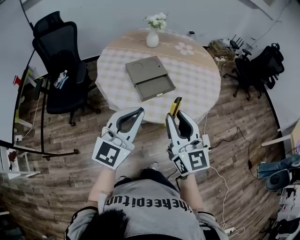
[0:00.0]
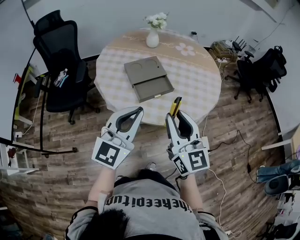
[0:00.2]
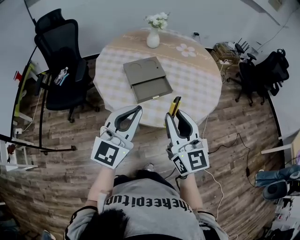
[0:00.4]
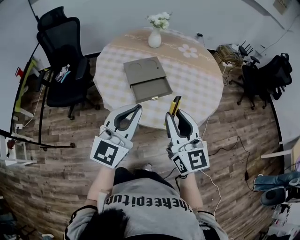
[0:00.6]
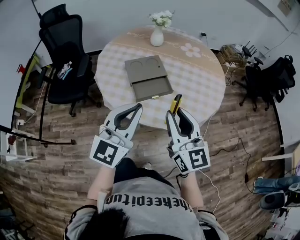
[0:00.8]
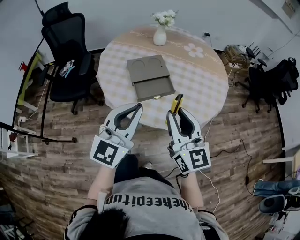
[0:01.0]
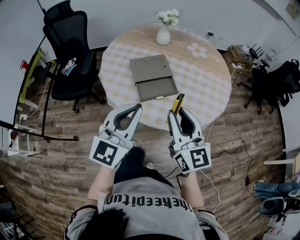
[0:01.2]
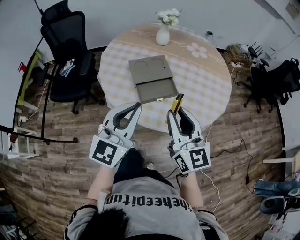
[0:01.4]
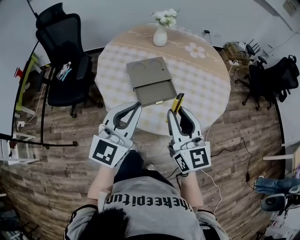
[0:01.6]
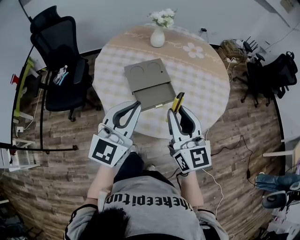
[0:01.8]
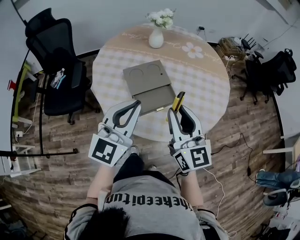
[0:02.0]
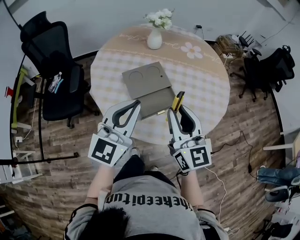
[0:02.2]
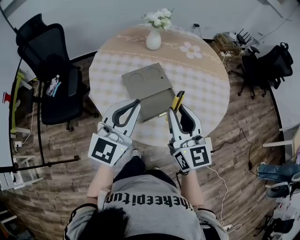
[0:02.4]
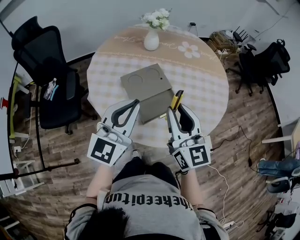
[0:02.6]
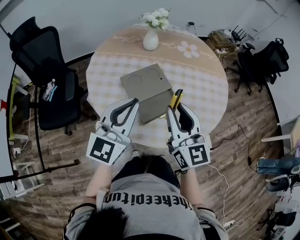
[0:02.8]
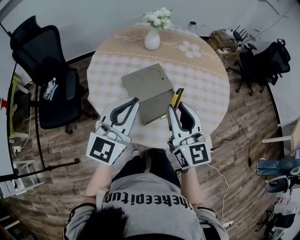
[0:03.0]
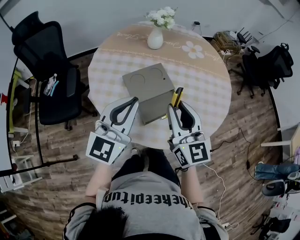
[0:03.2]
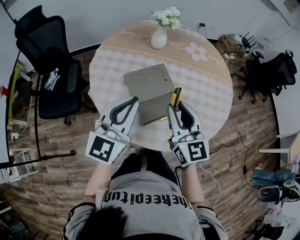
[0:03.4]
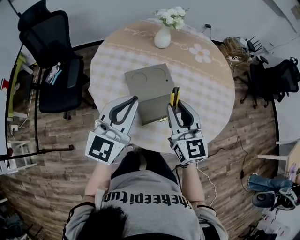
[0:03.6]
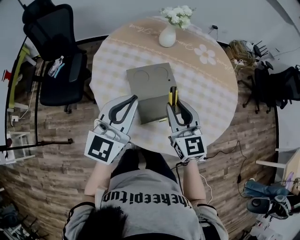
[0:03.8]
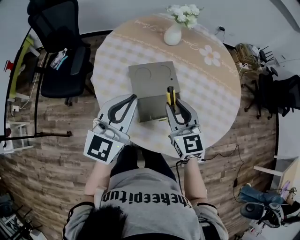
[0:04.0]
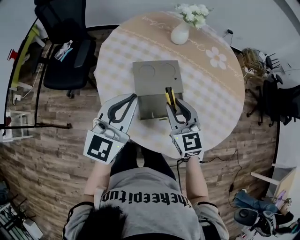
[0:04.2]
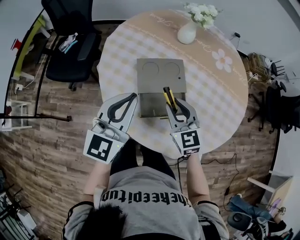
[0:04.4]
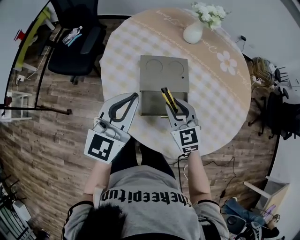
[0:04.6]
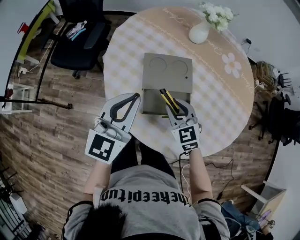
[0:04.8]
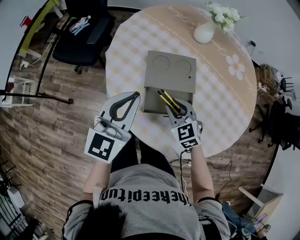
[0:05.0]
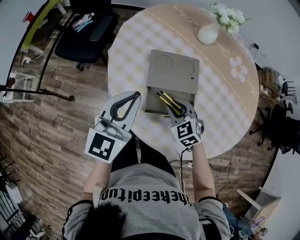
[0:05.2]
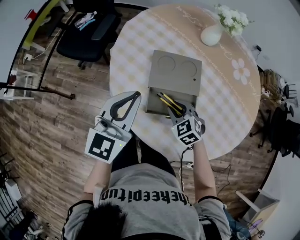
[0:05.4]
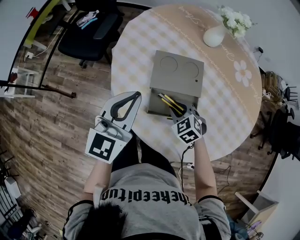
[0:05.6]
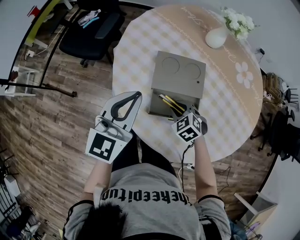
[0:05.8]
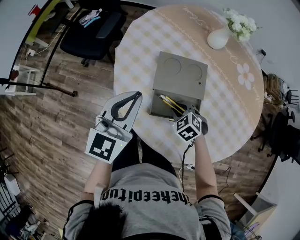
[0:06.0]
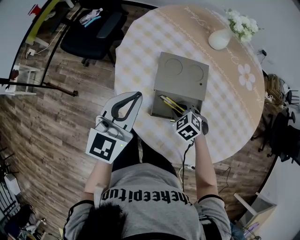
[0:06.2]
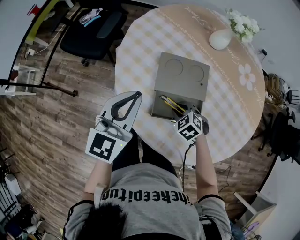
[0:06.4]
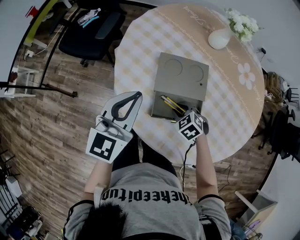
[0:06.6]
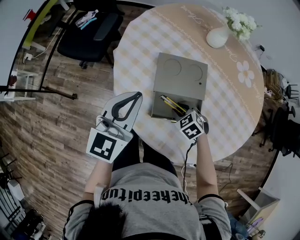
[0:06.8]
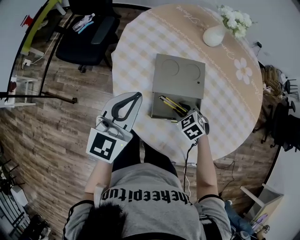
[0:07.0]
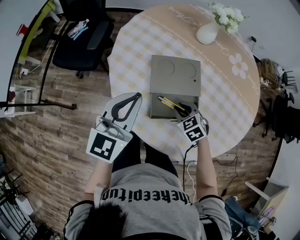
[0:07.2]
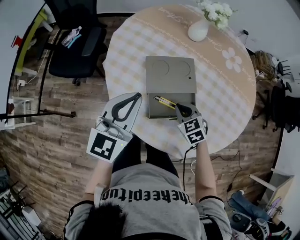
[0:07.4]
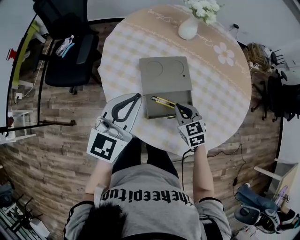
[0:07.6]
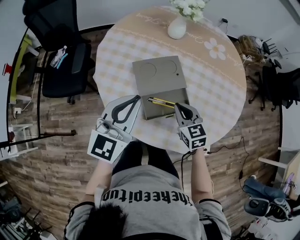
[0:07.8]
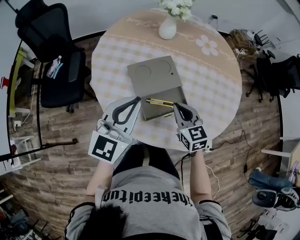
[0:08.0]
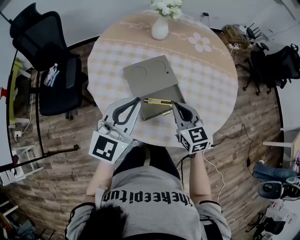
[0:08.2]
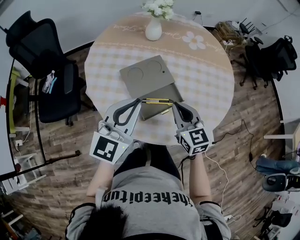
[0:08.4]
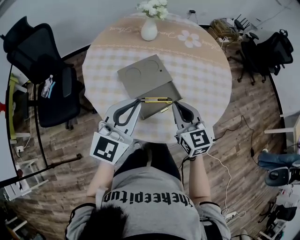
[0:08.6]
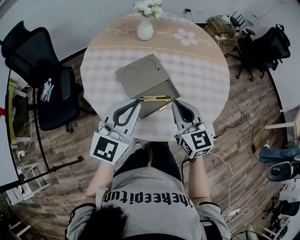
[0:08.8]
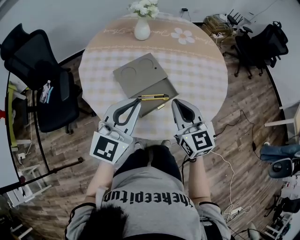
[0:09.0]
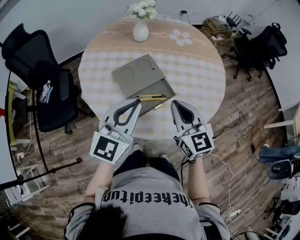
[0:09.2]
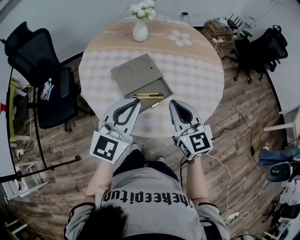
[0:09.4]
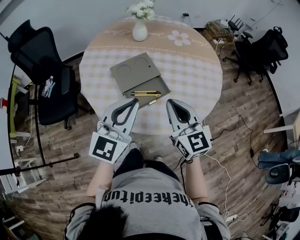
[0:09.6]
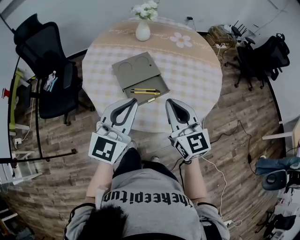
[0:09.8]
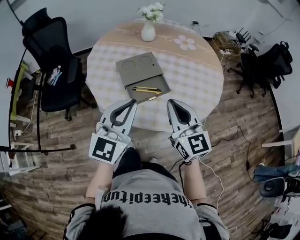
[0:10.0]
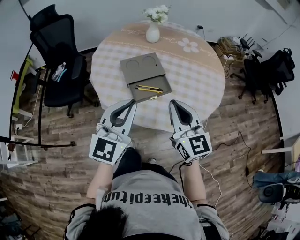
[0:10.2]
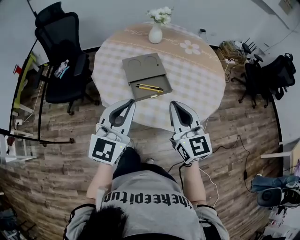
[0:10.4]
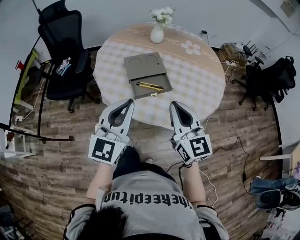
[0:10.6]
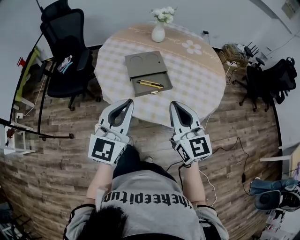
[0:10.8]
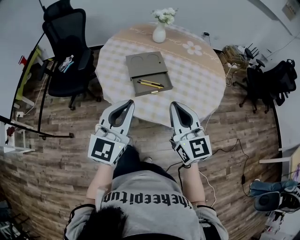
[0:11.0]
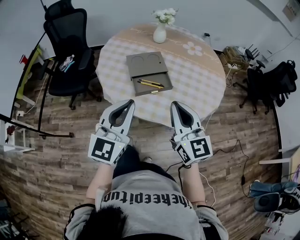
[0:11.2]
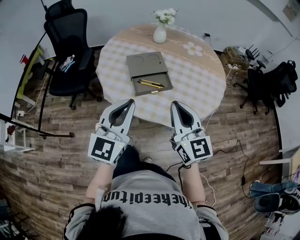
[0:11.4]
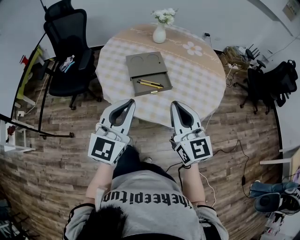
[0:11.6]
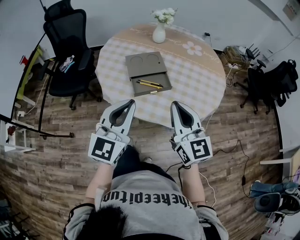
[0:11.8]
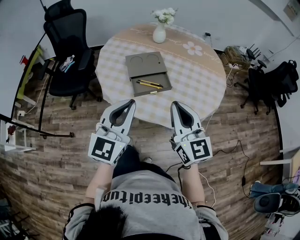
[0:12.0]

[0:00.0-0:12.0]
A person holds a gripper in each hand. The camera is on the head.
0:00.0 to 0:01.6: Both grippers move forward, about 10 cm.
0:01.6 to 0:03.0: The grippers both shift forward and to the left by roughly 15 cm.
0:03.0 to 0:04.4: The right gripper heads downward and forward, covering some 15 cm, and swivels roughly 40 degrees; the left gripper ends up approximately 5 cm from where it was, and rotates about 20 degrees.
0:04.4 to 0:06.0: The right gripper goes about 15 cm downward, and tips its fingers downward by some 40 degrees. The left gripper changes place by roughly 5 cm.
0:06.0 to 0:07.6: The right gripper is displaced upward by some 5 cm, changes its angle by about 40 degrees, and closes up.
0:07.6 to 0:09.0: The left gripper shifts roughly 5 cm to the right, and rotates some 20 degrees; the right gripper heads upward and backward, covering roughly 20 cm, and points its fingers some 30 degrees further upward.
0:09.0 to 0:10.4: The right gripper is displaced backward and upward by some 15 cm, while the left gripper travels backward by roughly 15 cm, and swivels about 20 degrees.
0:10.4 to 0:12.0: The grippers stay close to where they were, moving slightly.

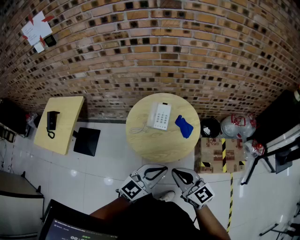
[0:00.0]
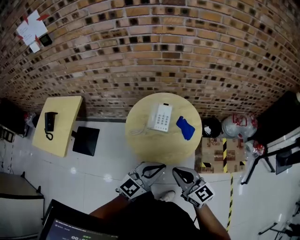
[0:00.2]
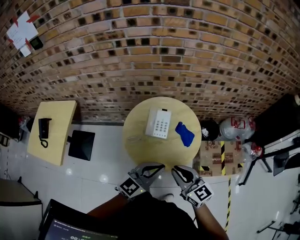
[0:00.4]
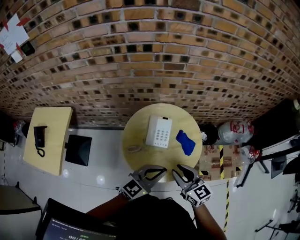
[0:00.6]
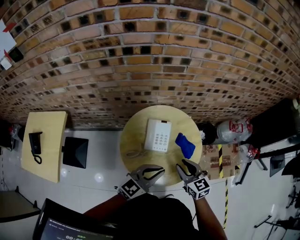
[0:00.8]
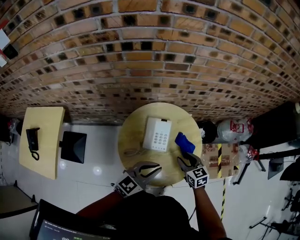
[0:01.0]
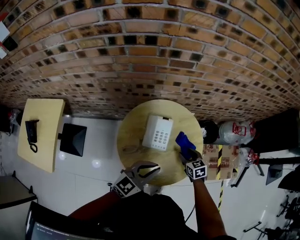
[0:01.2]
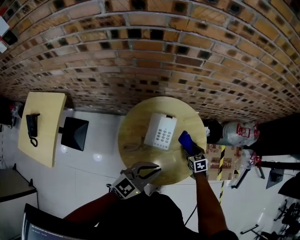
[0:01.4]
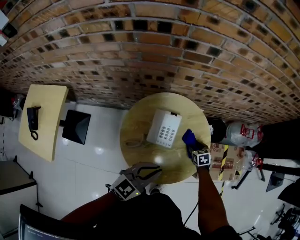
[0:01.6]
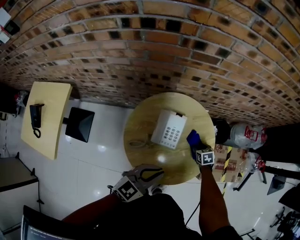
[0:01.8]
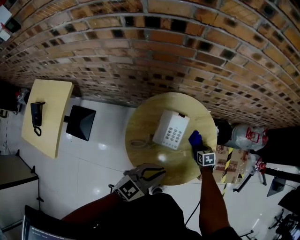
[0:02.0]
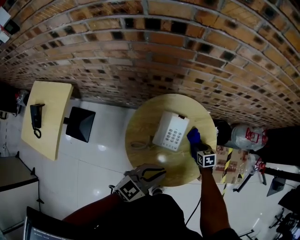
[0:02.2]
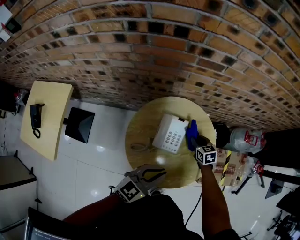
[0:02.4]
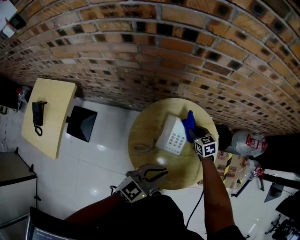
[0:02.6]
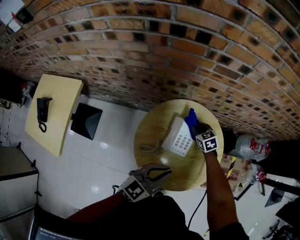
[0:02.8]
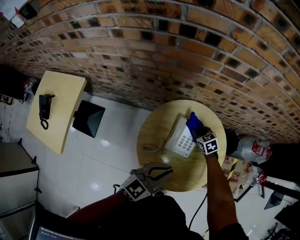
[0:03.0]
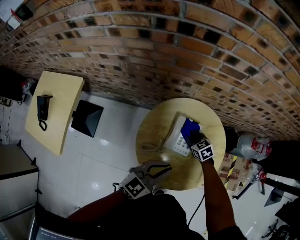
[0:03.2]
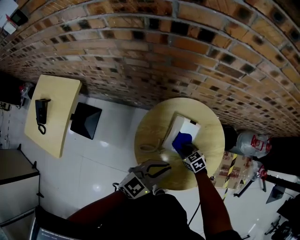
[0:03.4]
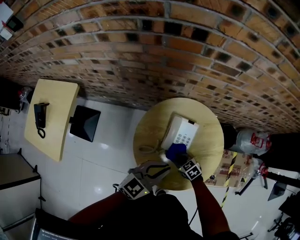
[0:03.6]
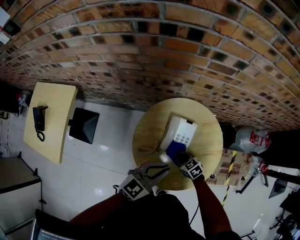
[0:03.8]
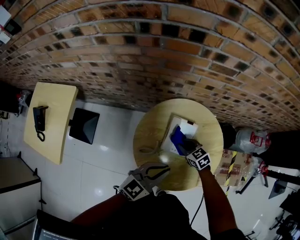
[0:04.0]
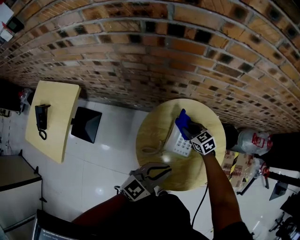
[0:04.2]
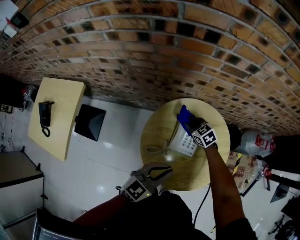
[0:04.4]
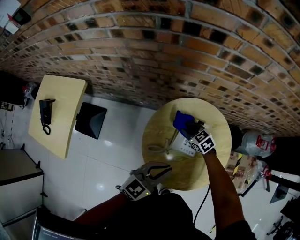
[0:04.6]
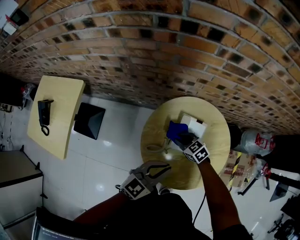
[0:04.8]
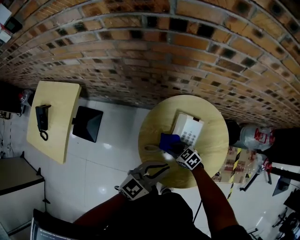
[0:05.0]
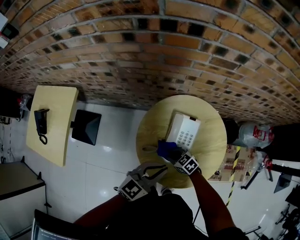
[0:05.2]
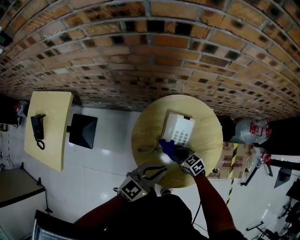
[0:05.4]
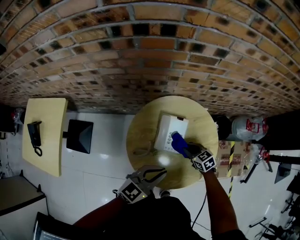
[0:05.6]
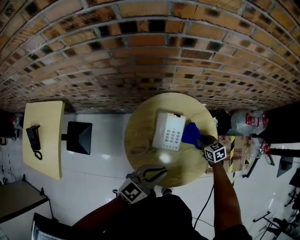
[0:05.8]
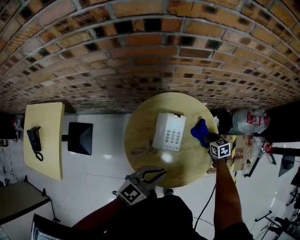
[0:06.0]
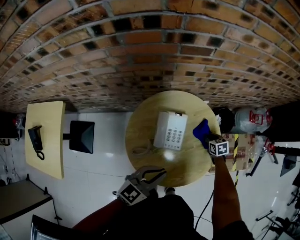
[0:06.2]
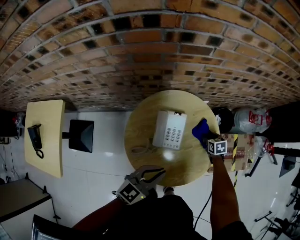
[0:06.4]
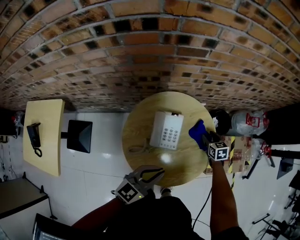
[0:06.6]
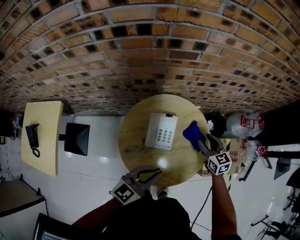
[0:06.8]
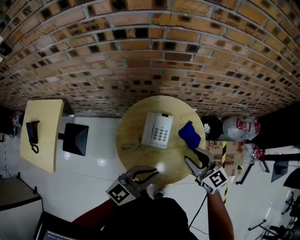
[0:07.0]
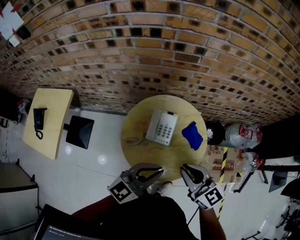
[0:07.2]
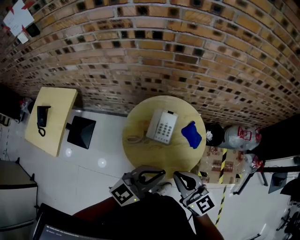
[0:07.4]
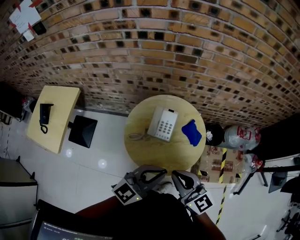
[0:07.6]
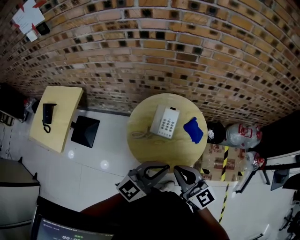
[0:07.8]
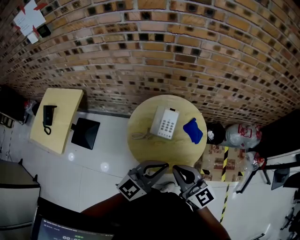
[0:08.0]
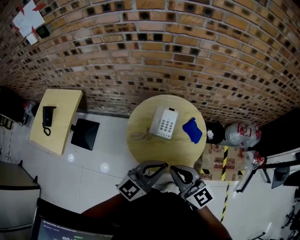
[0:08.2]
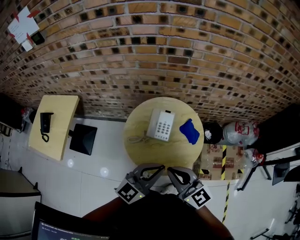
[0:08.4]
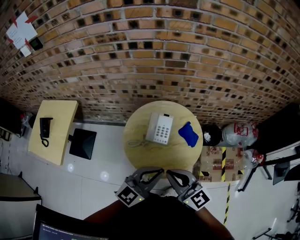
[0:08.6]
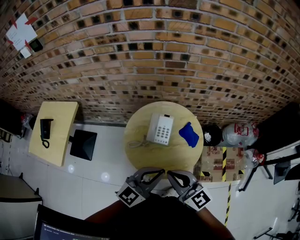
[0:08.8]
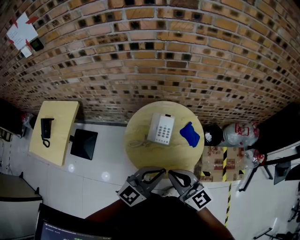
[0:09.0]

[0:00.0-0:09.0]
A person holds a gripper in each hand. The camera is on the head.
0:00.0 to 0:01.6: The left gripper shifts some 30 cm forward, downward and to the left. Meanwhile the right gripper shifts some 50 cm forward and downward, tips its fingers downward by some 50 degrees, and opens up.
0:01.6 to 0:03.0: The right gripper moves to the left and forward, approximately 20 cm, swivels approximately 20 degrees, and closes. Meanwhile the left gripper travels to the left by about 5 cm.
0:03.0 to 0:04.4: The right gripper moves approximately 5 cm upward and comes back.
0:04.4 to 0:06.0: The left gripper changes place by about 5 cm, while the right gripper ends up about 30 cm from where it was, and turns by approximately 30 degrees.
0:06.0 to 0:07.6: The left gripper goes some 20 cm upward, backward and to the right; the right gripper moves upward and backward, approximately 50 cm, points its fingers some 50 degrees further upward, and opens, then closes again.
0:07.6 to 0:09.0: The grippers move only a little.

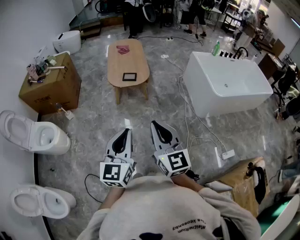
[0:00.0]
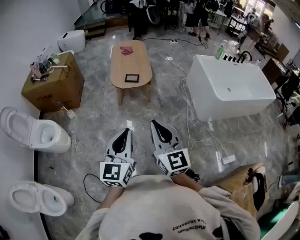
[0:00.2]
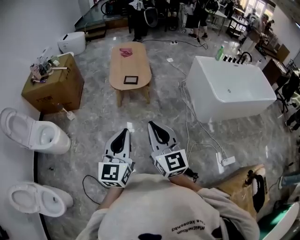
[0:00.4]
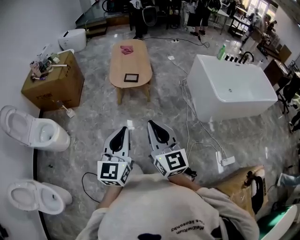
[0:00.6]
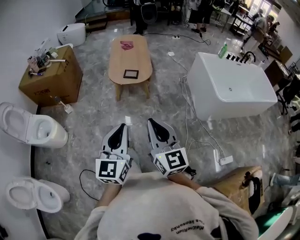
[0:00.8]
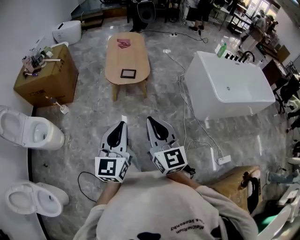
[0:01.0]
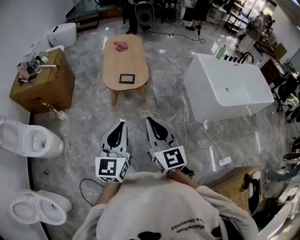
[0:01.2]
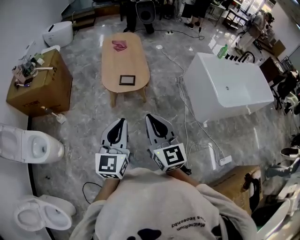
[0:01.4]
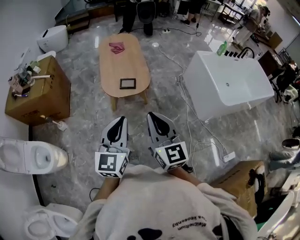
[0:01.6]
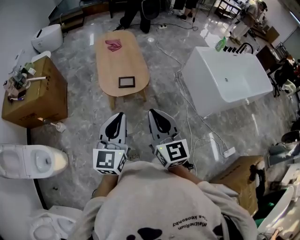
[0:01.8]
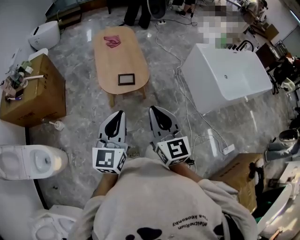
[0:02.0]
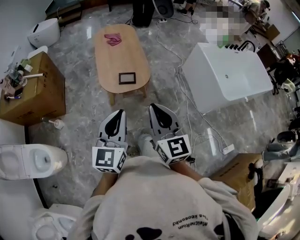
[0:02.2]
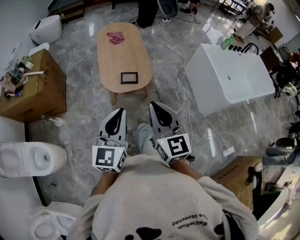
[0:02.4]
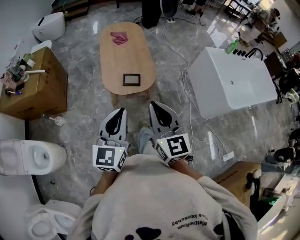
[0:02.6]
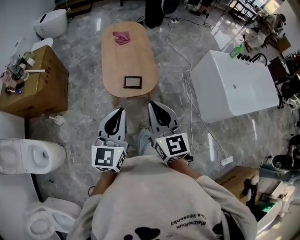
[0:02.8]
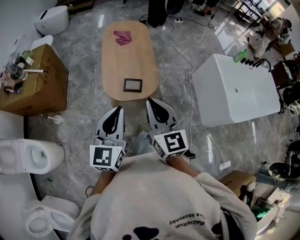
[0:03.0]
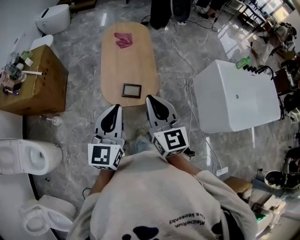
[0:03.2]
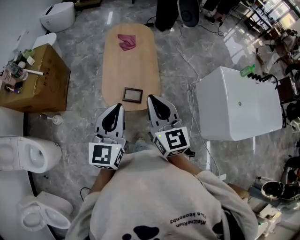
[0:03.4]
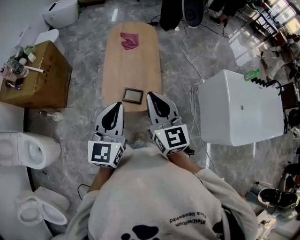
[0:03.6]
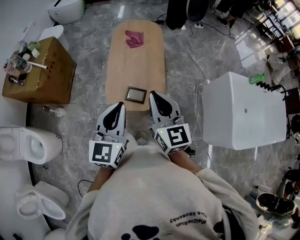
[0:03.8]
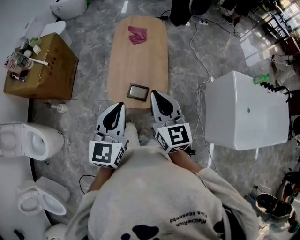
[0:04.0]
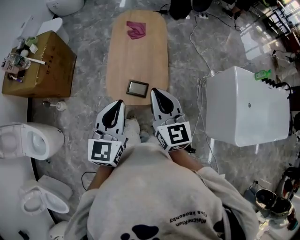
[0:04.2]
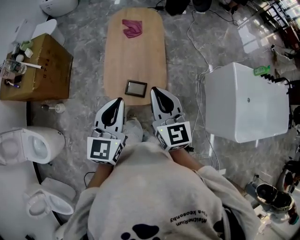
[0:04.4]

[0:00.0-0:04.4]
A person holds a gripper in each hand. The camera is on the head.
0:00.0 to 0:01.4: Both grippers travel together forward, roughly 20 cm.
0:01.4 to 0:03.0: Both grippers move forward, roughly 25 cm.
0:03.0 to 0:04.4: Both grippers move forward, roughly 20 cm.
